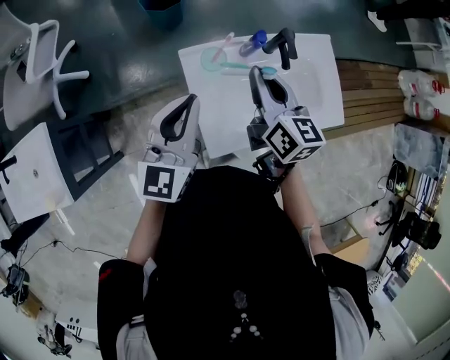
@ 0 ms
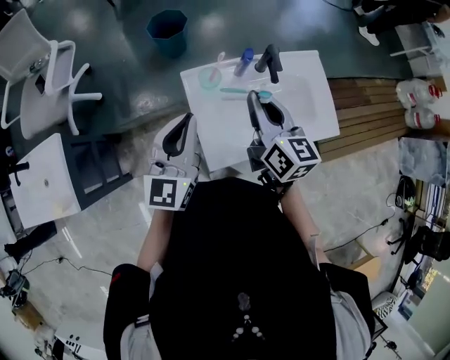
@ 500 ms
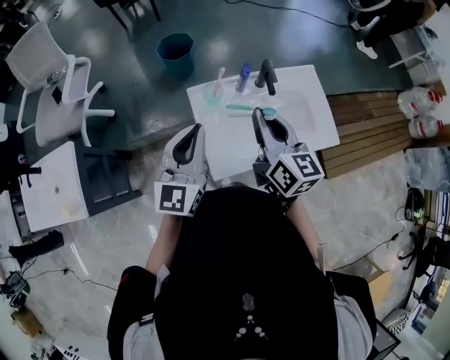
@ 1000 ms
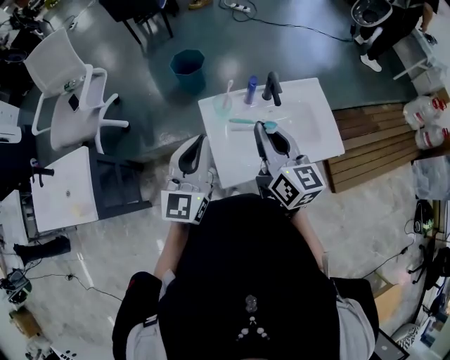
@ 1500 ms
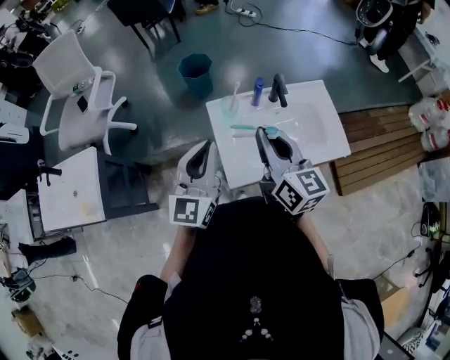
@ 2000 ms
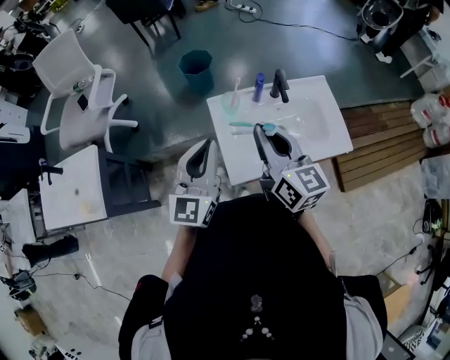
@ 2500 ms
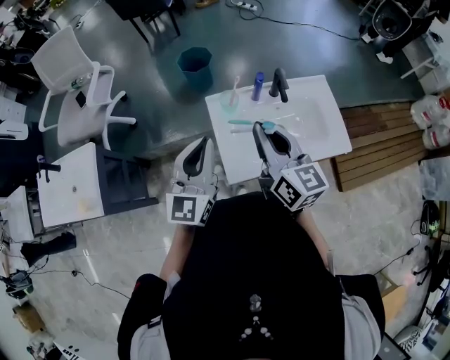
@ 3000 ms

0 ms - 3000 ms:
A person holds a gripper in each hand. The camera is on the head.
0 ms - 1500 ms: The grippers both shift backward and upward by some 15 cm.
1500 ms - 3000 ms: The grippers stay close to where they were, moving slightly.

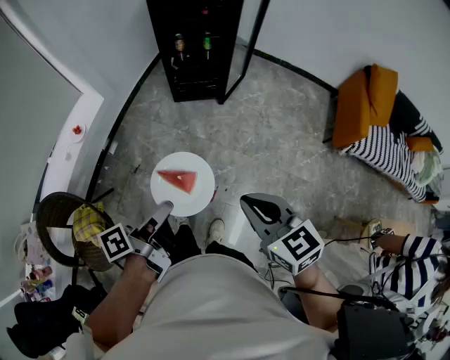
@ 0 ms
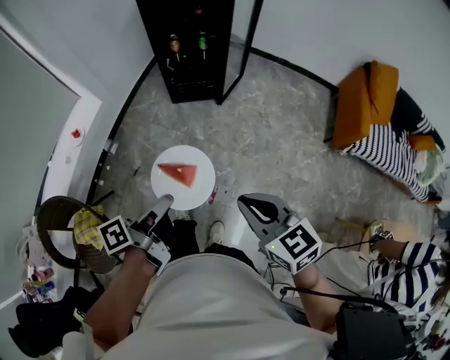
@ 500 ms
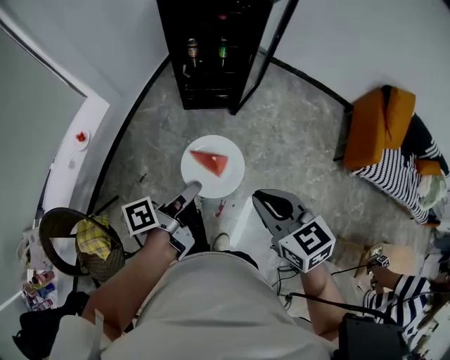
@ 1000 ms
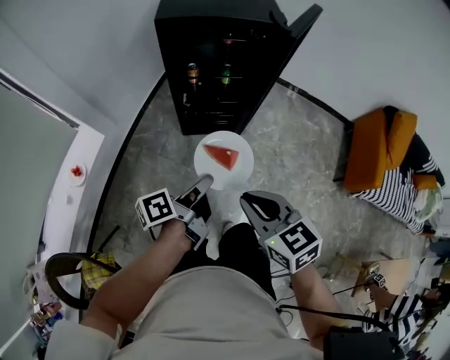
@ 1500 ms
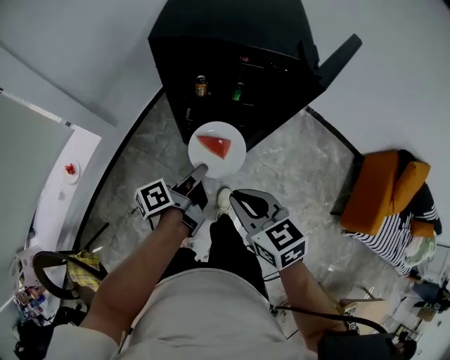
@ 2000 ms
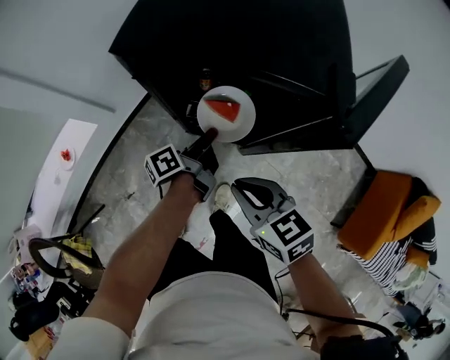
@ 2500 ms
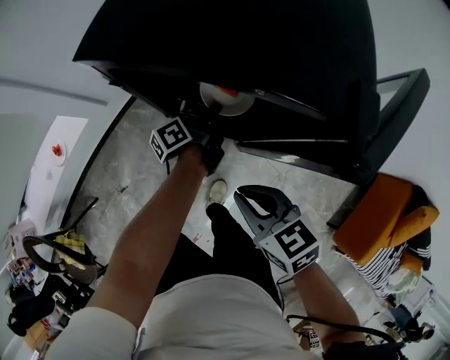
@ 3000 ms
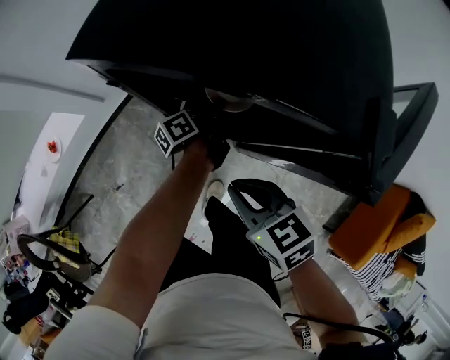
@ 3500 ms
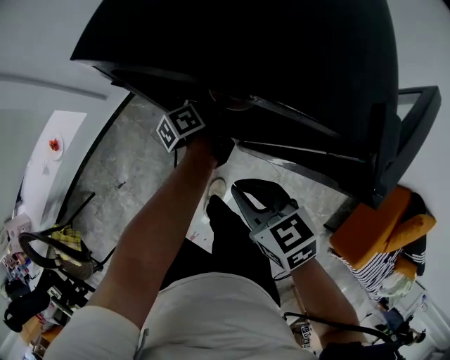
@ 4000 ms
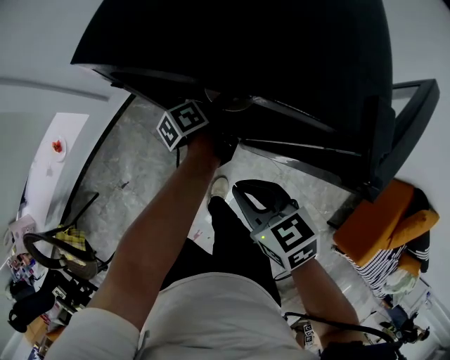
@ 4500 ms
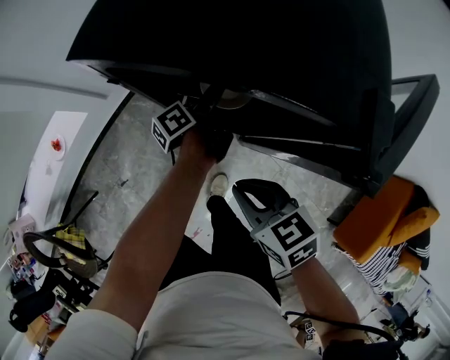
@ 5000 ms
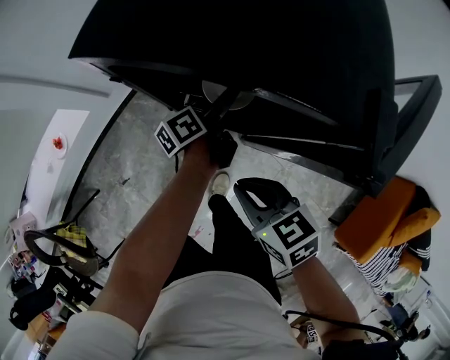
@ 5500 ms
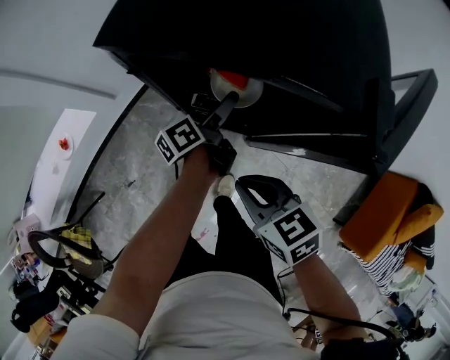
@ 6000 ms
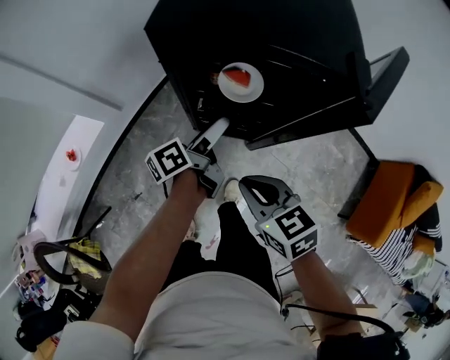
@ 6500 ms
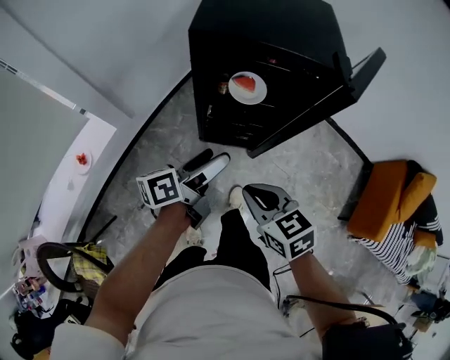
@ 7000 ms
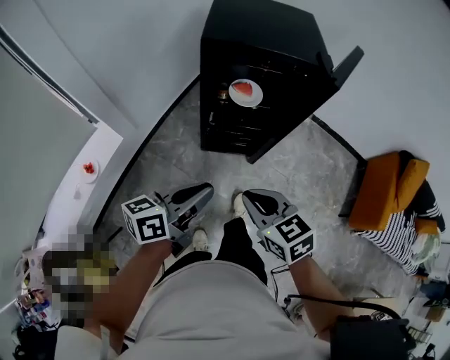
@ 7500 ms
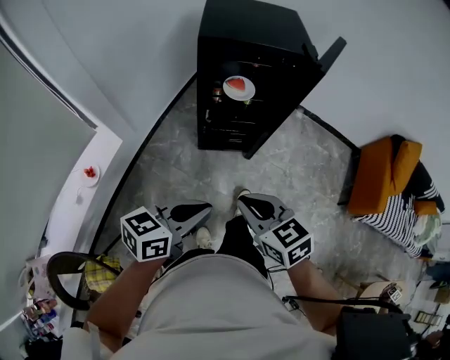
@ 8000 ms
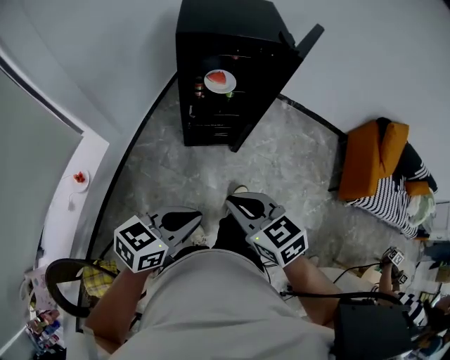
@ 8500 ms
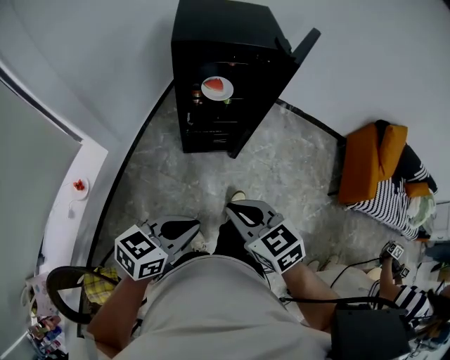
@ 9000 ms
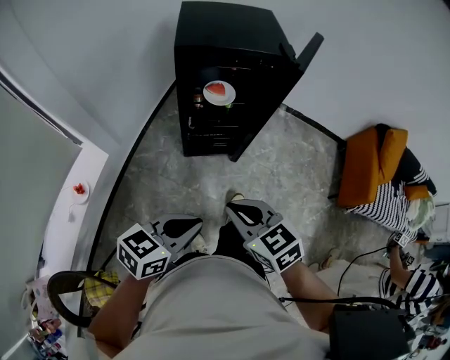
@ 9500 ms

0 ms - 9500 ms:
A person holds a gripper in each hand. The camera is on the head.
0 ms - 2000 ms: The right gripper moves roughly 50 cm.
2000 ms - 4000 ms: The right gripper changes place by about 20 cm.
5500 ms - 7500 ms: The right gripper changes place by about 25 cm.
7500 ms - 9500 ms: The right gripper shifts by roughly 10 cm.

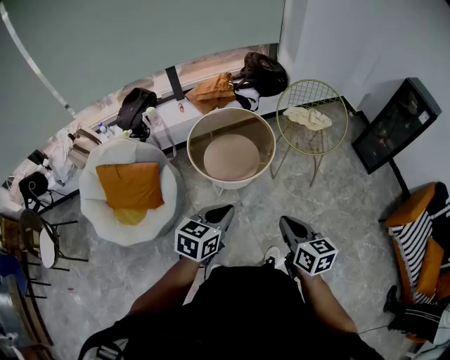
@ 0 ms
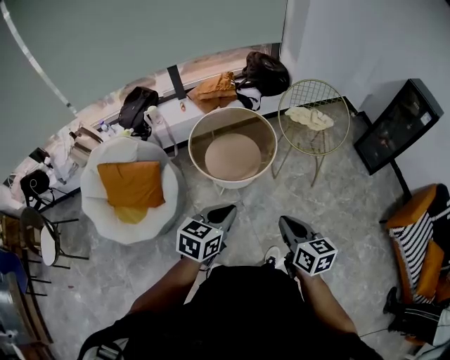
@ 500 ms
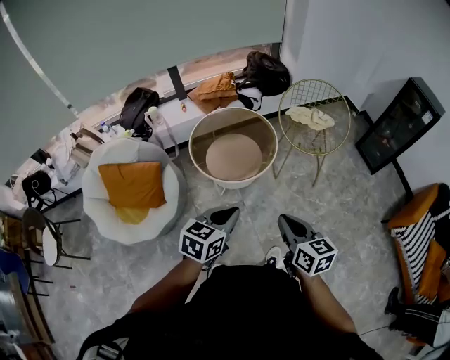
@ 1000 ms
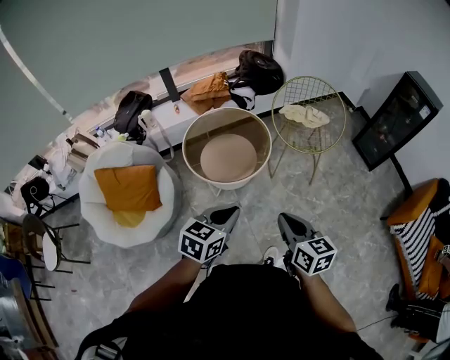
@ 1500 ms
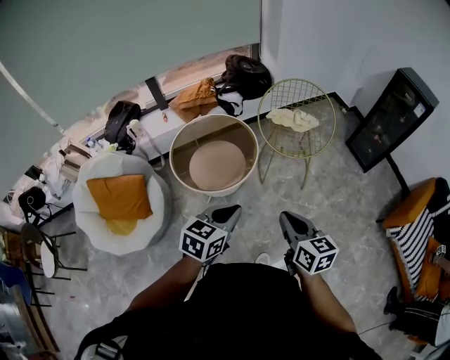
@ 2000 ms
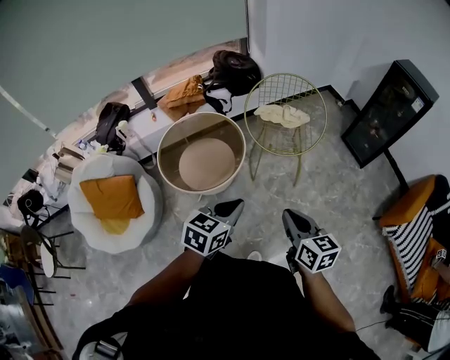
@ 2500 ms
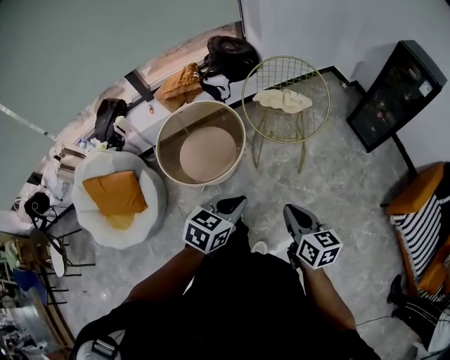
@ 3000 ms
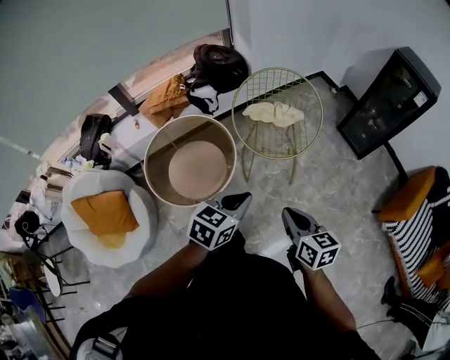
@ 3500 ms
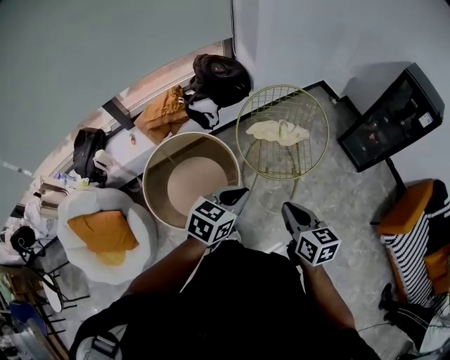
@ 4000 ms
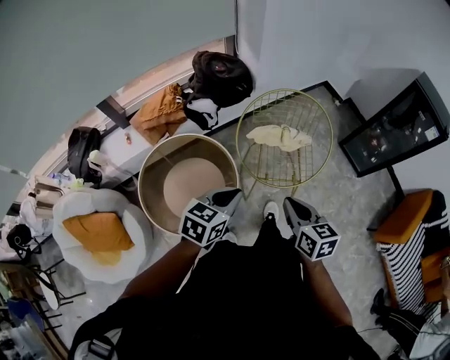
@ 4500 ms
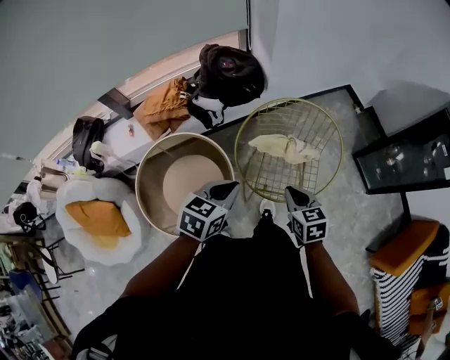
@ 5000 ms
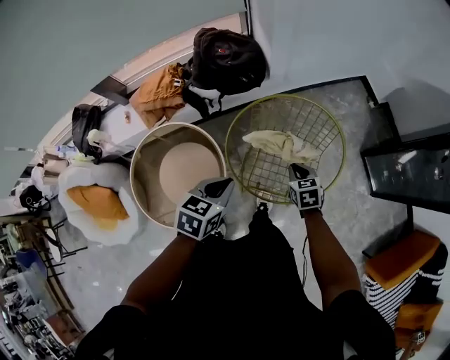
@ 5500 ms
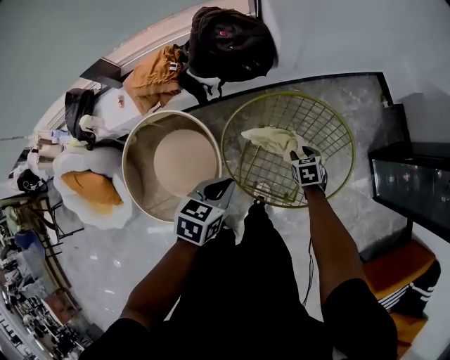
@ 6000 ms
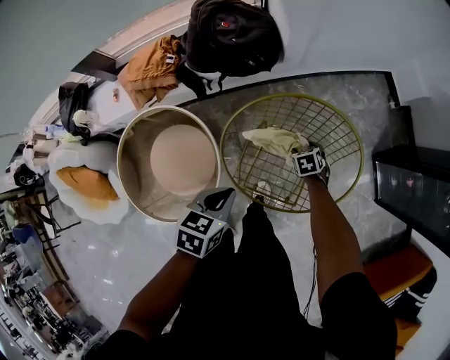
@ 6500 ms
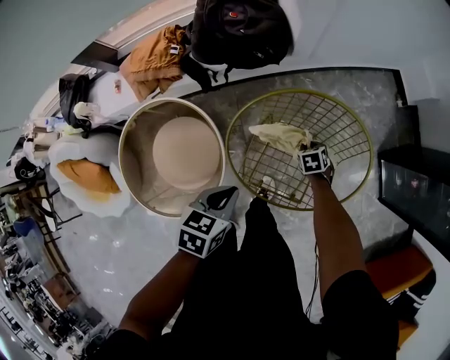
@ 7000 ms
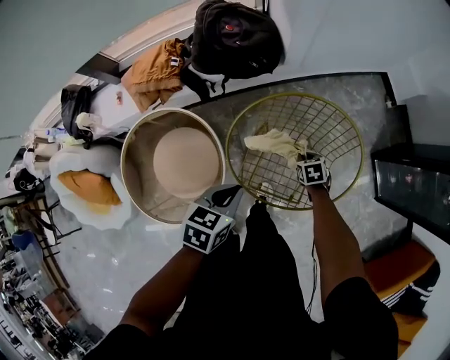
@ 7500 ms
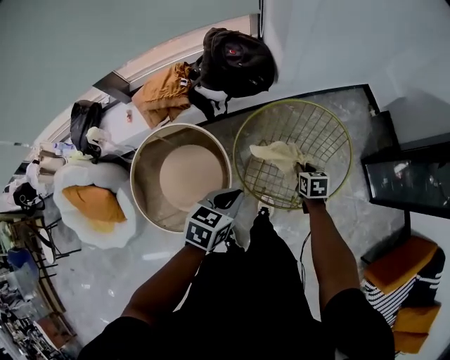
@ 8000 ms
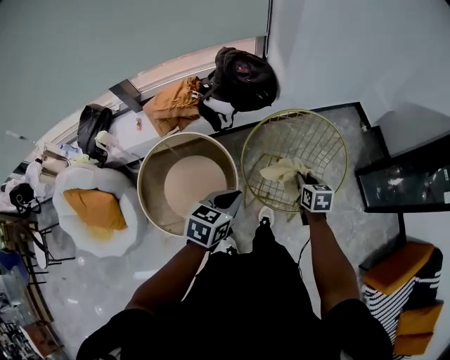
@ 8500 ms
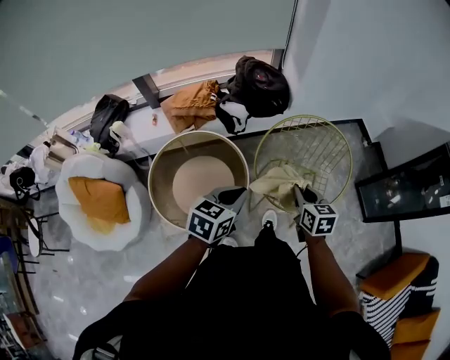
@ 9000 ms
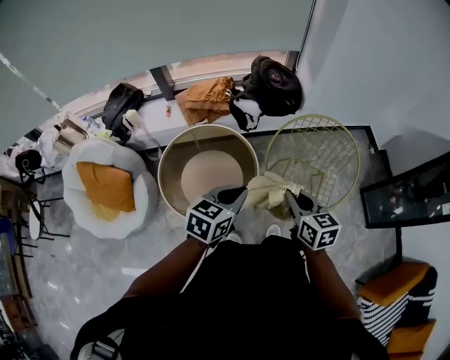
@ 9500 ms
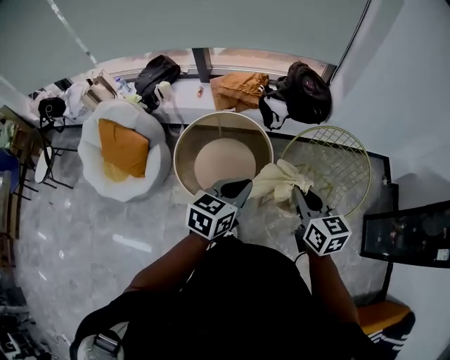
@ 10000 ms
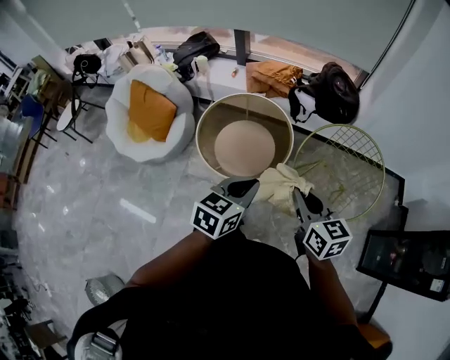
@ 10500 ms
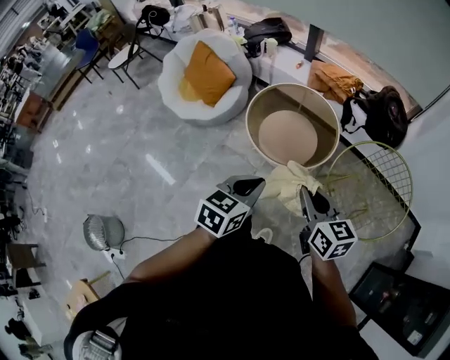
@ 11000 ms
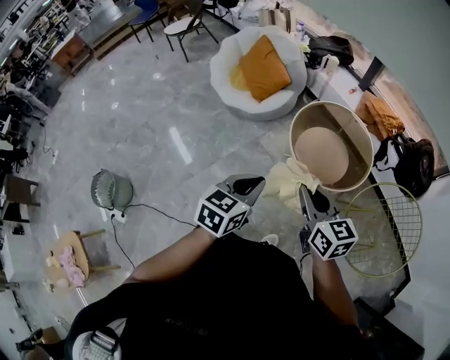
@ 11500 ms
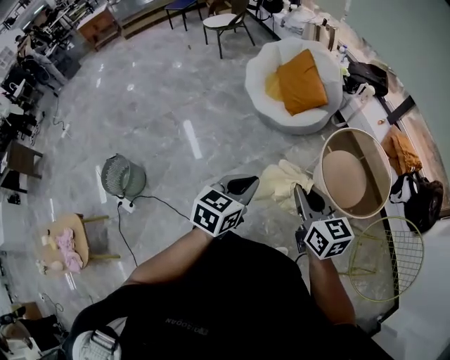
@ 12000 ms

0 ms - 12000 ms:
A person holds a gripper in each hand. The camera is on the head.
0 ms - 2000 ms: The grippers both shift to the right and forward by roughly 15 cm.
2000 ms - 4000 ms: The grippers both shift forward by approximately 30 cm.
4000 ms - 6000 ms: The left gripper is displaced forward and downward by some 35 cm, and turns by some 30 degrees. Meanwhile the right gripper shifts roughly 60 cm forward and downward, tips its fingers downward by about 40 degrees, and opens.
6000 ms - 8000 ms: The left gripper shifts by about 10 cm, while the right gripper shifts some 10 cm upward, and closes.
8000 ms - 10000 ms: The right gripper travels upward by about 35 cm, and tilts its fingers approximately 30 degrees upward. The left gripper changes place by approximately 25 cm, and rotates roughly 30 degrees.
10000 ms - 12000 ms: The two grippers travel together, some 50 cm. The left gripper rotates approximately 60 degrees; the right gripper changes its angle by approximately 60 degrees.

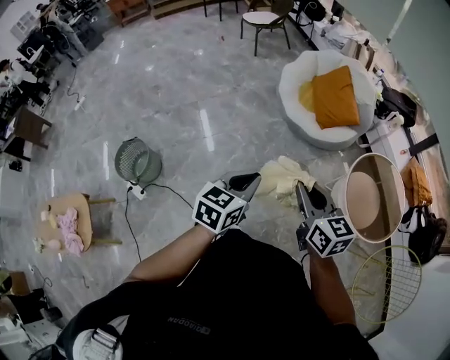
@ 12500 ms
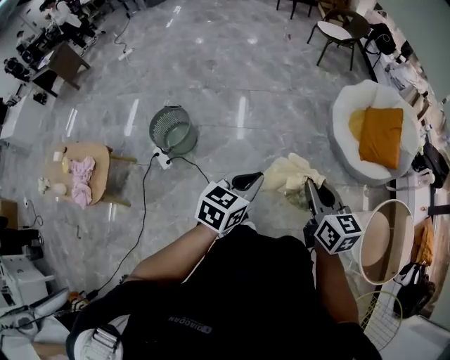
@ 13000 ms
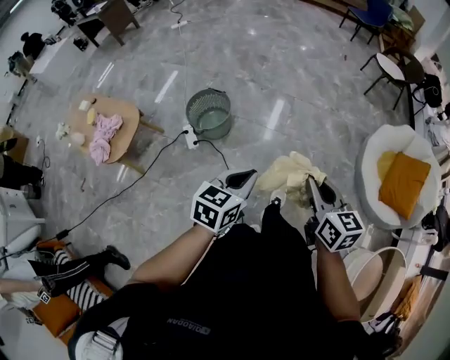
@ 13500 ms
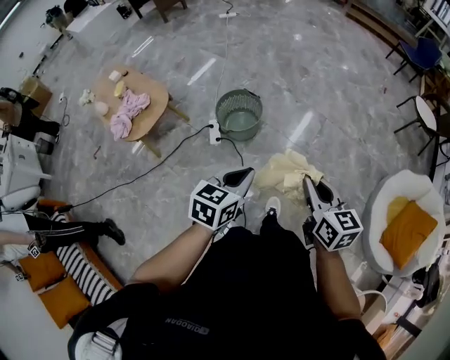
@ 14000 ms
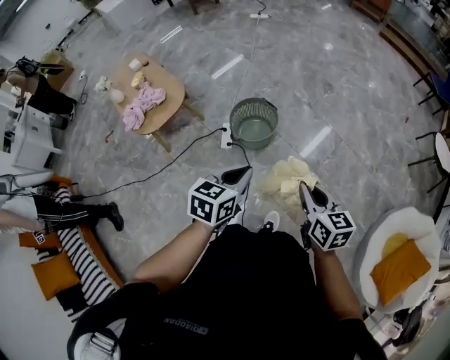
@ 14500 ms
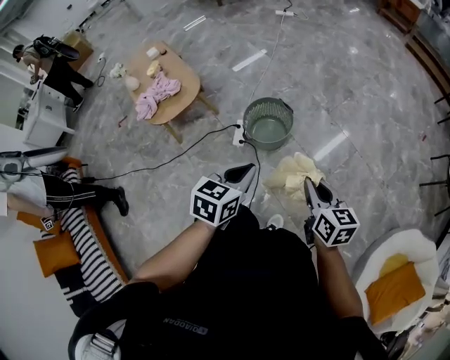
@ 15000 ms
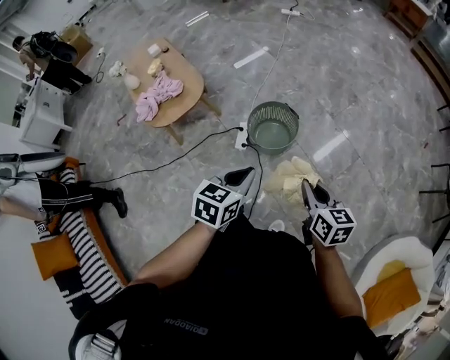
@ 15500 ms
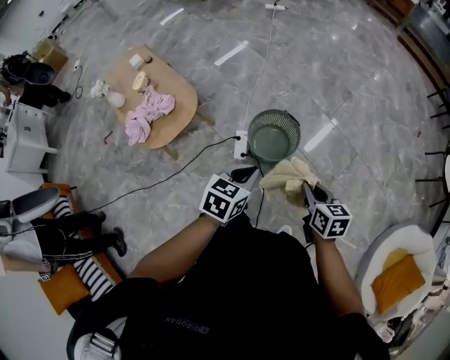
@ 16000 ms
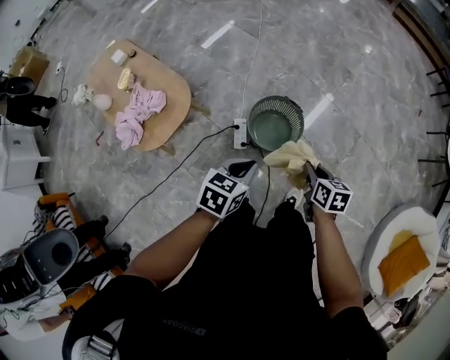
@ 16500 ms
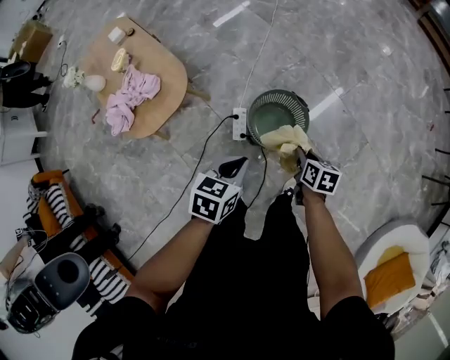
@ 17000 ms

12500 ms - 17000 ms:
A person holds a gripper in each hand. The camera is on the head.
12500 ms - 14500 ms: Both grippers are carried approximately 50 cm. The left gripper rotates roughly 70 degrees, while the right gripper swivels approximately 60 degrees.
14500 ms - 17000 ms: The left gripper travels forward, to the left and downward by approximately 35 cm. Meanwhile the right gripper is displaced forward, downward and to the left by approximately 50 cm, and rotates roughly 30 degrees.
